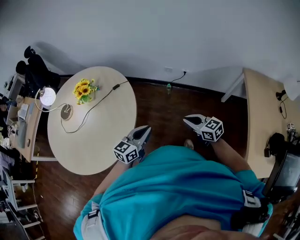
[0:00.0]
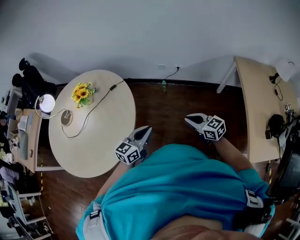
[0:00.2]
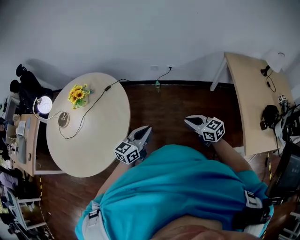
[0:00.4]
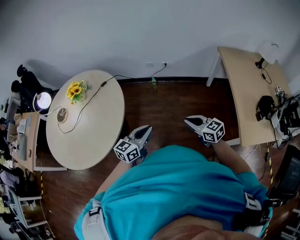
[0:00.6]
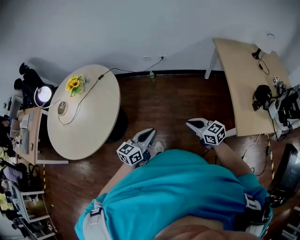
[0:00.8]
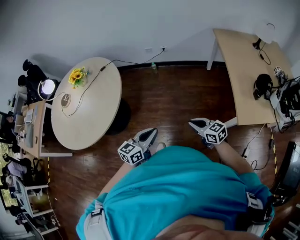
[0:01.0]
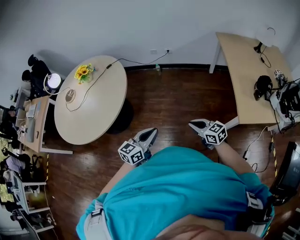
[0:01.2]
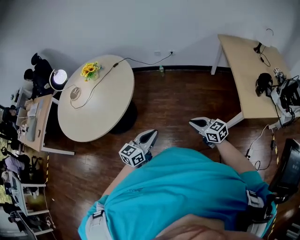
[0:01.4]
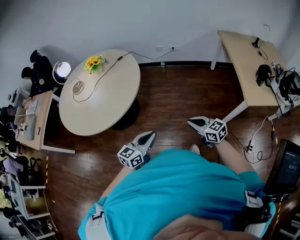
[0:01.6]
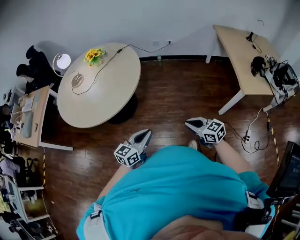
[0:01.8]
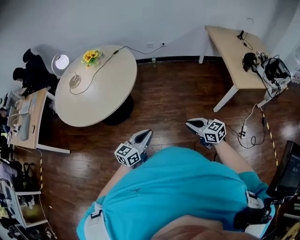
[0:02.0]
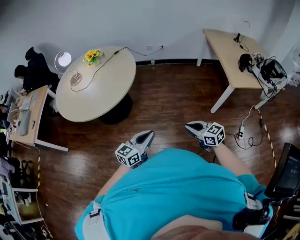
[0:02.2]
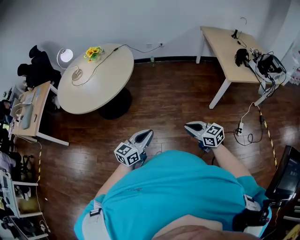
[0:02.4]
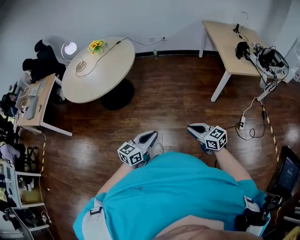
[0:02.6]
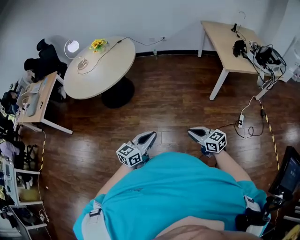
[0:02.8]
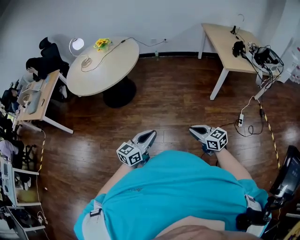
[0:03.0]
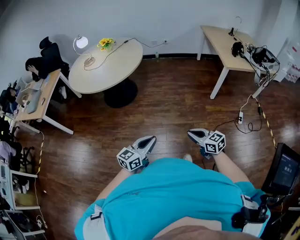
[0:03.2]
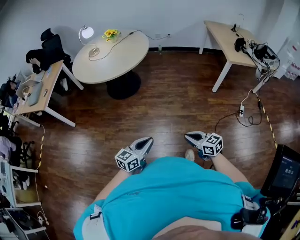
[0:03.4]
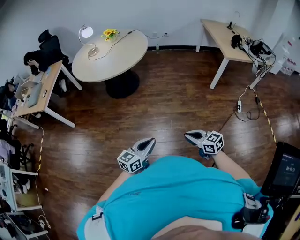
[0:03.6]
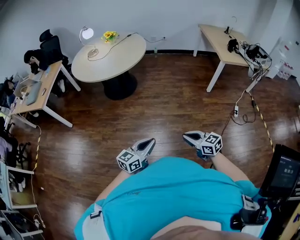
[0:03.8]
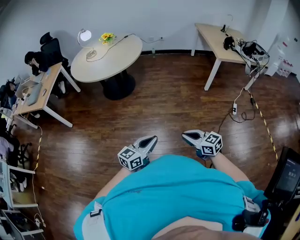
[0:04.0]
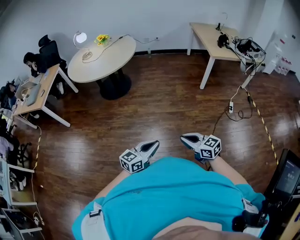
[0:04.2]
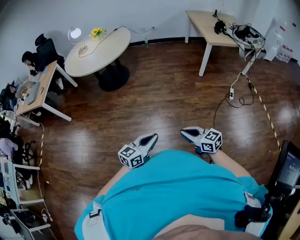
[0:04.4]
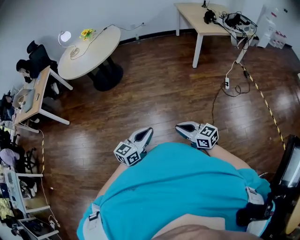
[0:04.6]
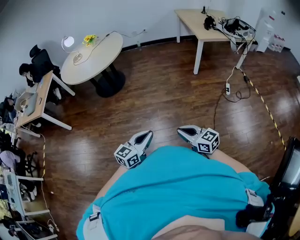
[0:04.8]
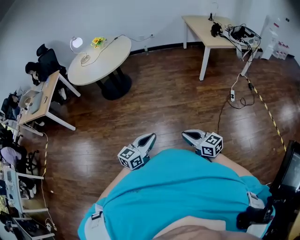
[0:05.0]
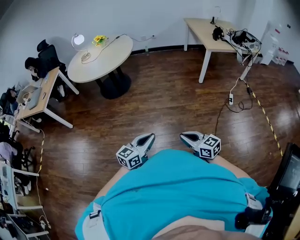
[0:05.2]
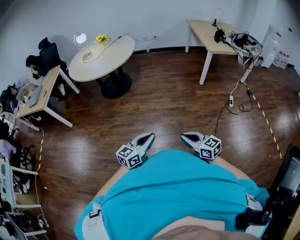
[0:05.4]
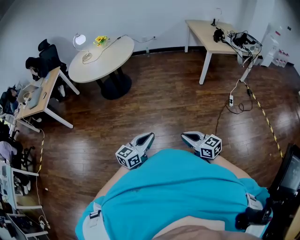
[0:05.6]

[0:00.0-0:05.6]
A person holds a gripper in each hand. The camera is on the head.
0:00.0 to 0:01.4: Both grippers are carried backward, about 40 cm.
0:01.4 to 0:02.8: The two grippers travel together, backward, some 50 cm.
0:02.8 to 0:04.2: The grippers both shift backward and to the left by about 40 cm.
0:04.2 to 0:05.6: The grippers stay close to where they were, moving slightly.

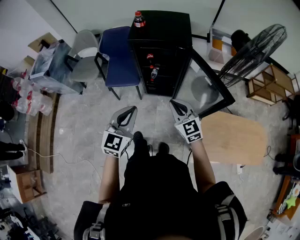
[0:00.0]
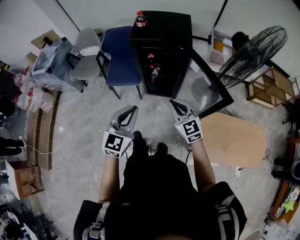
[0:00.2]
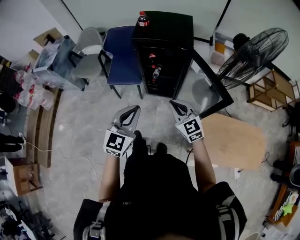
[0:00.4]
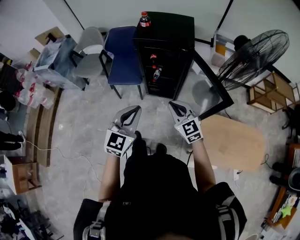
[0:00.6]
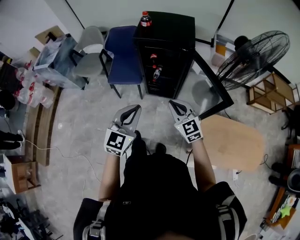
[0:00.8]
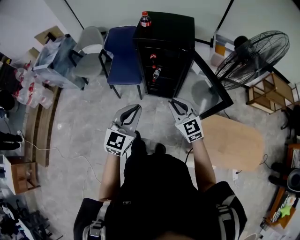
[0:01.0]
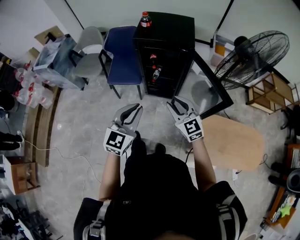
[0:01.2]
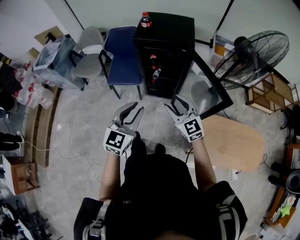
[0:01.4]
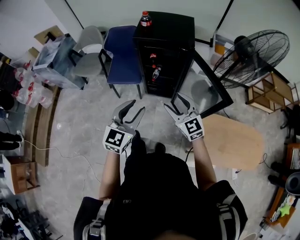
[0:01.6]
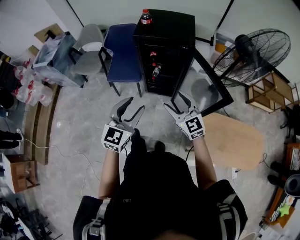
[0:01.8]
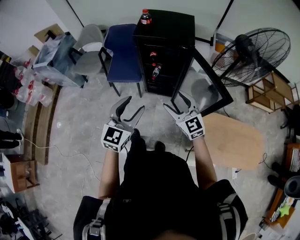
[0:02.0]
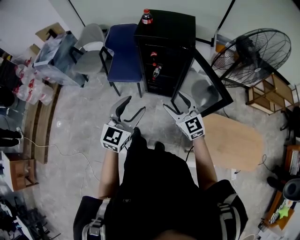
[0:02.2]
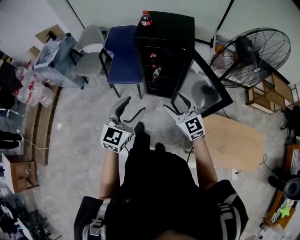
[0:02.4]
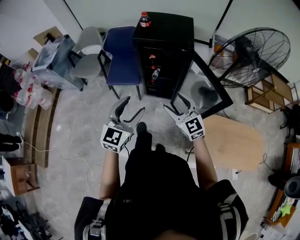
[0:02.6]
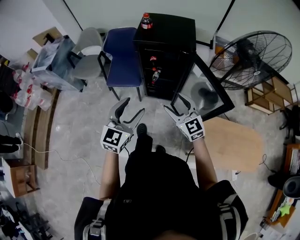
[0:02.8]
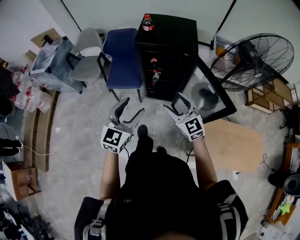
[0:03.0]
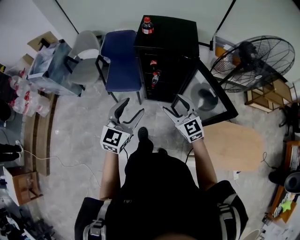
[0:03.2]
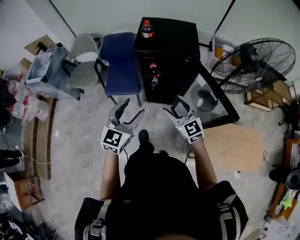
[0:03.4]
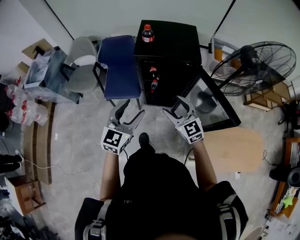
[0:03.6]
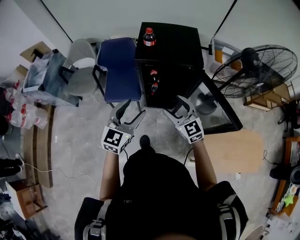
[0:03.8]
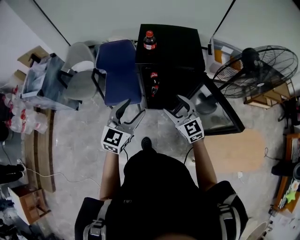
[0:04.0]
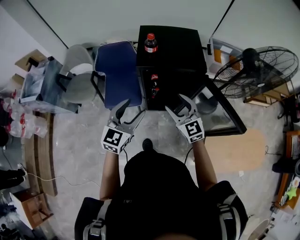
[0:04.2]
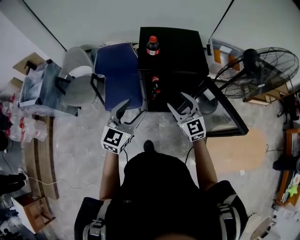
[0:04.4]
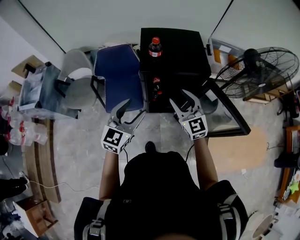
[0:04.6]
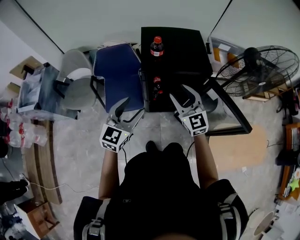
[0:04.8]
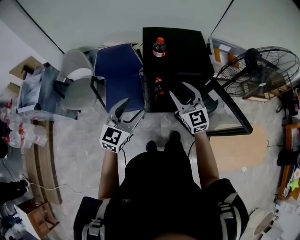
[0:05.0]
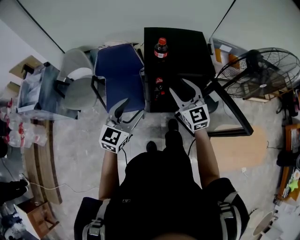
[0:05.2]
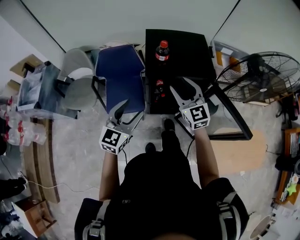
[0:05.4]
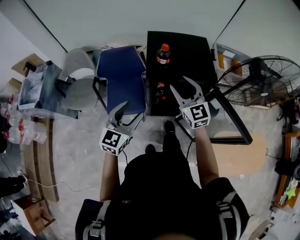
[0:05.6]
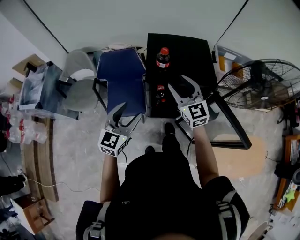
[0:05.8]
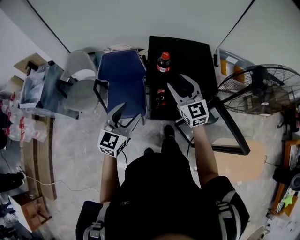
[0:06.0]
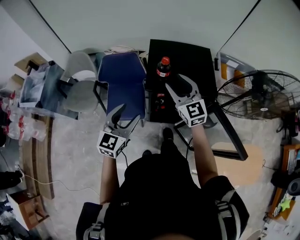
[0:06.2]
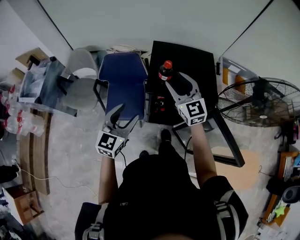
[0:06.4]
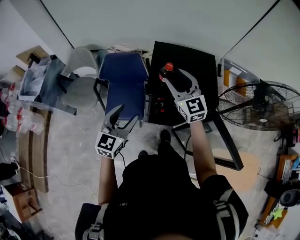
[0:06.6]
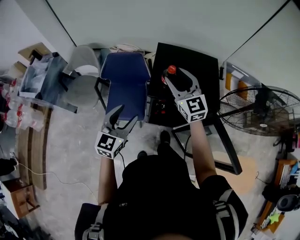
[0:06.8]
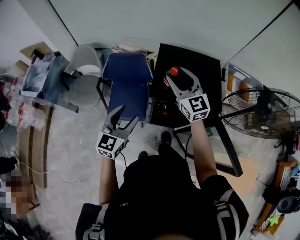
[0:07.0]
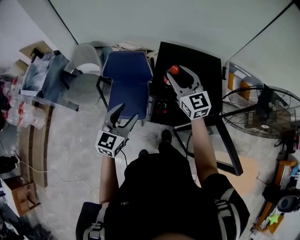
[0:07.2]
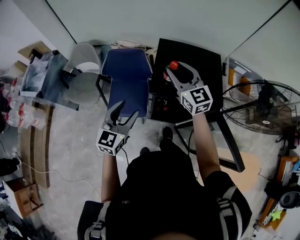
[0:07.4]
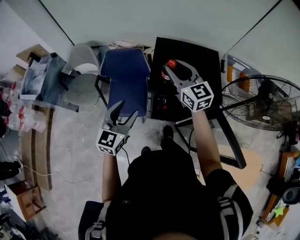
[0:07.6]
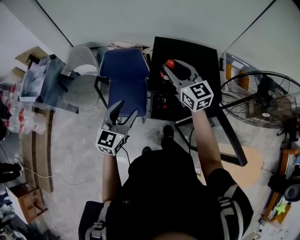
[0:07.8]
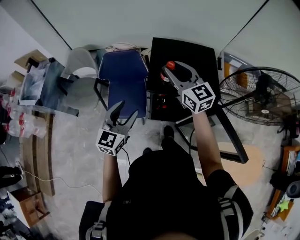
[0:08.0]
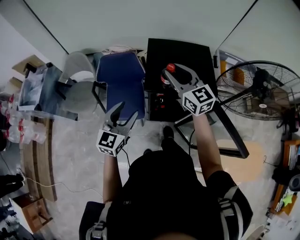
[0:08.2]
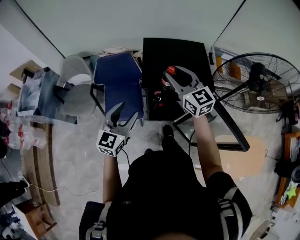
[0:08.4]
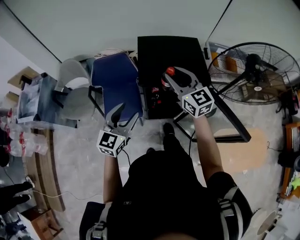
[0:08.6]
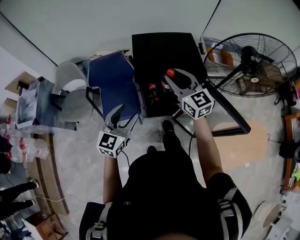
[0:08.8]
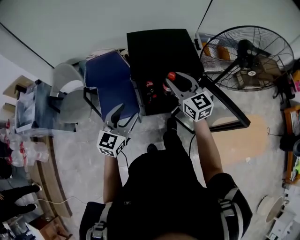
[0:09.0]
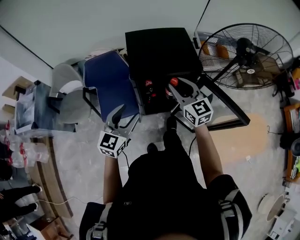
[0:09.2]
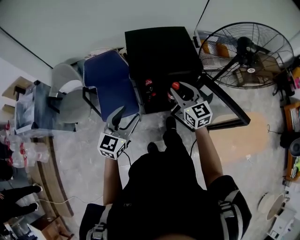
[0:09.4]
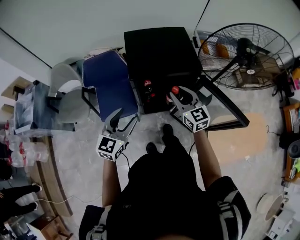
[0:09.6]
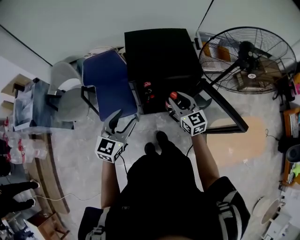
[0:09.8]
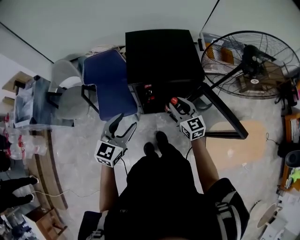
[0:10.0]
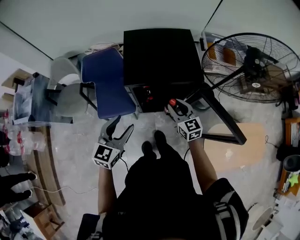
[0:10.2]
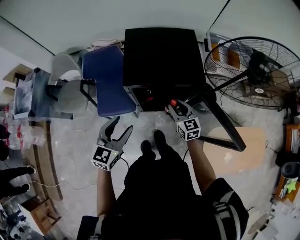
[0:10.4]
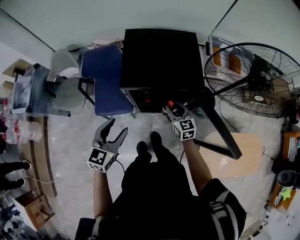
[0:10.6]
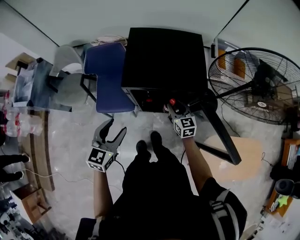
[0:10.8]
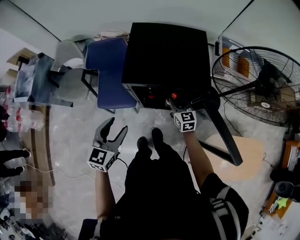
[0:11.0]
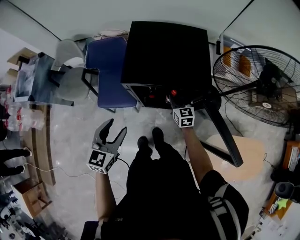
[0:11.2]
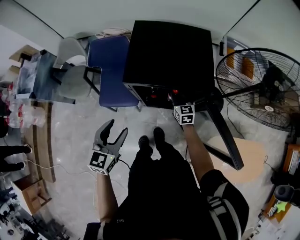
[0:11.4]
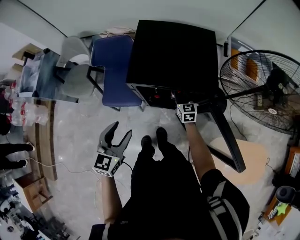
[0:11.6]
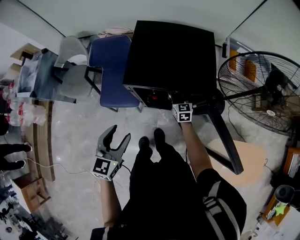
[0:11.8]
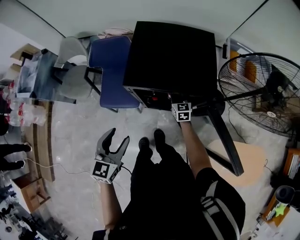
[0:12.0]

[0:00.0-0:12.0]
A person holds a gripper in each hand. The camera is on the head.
0:00.0 to 0:01.6: The left gripper opens; the right gripper opens up.
0:01.6 to 0:03.0: The left gripper travels forward by approximately 5 cm, and opens up, while the right gripper moves some 5 cm.
0:03.0 to 0:04.4: Both grippers move forward, approximately 20 cm.
0:04.4 to 0:06.0: The right gripper goes approximately 15 cm forward and upward. Meanwhile the left gripper moves forward and to the left, approximately 10 cm.
0:06.0 to 0:07.6: The right gripper goes approximately 10 cm forward.
0:07.6 to 0:09.0: The right gripper travels backward and to the right by roughly 15 cm, while the left gripper moves backward, some 5 cm.
0:09.0 to 0:10.4: The right gripper is displaced downward by about 20 cm.
0:10.4 to 0:12.0: The right gripper travels downward and forward by about 20 cm.

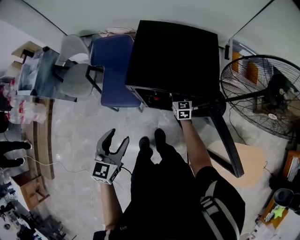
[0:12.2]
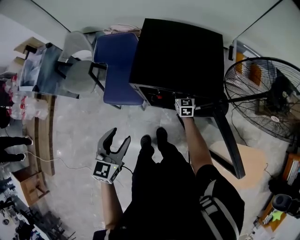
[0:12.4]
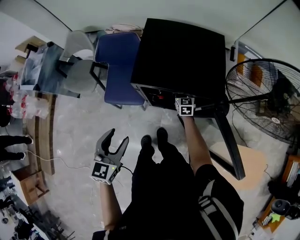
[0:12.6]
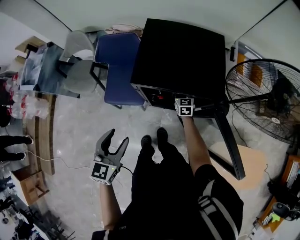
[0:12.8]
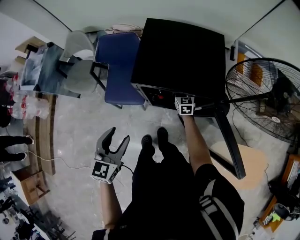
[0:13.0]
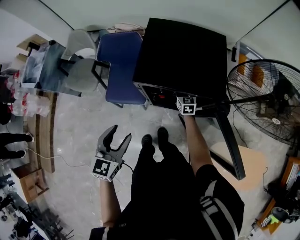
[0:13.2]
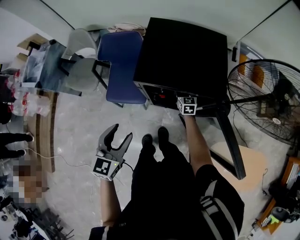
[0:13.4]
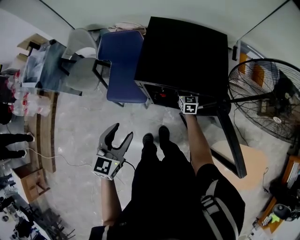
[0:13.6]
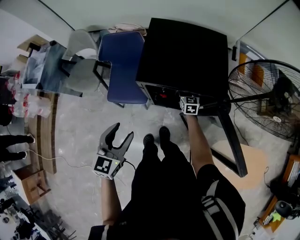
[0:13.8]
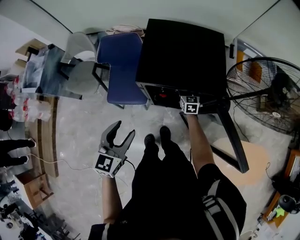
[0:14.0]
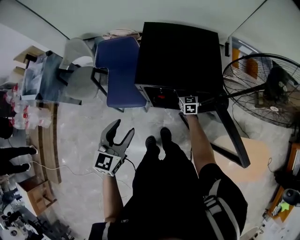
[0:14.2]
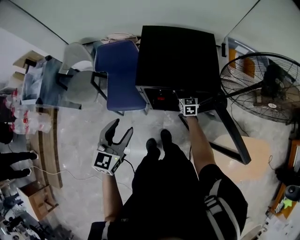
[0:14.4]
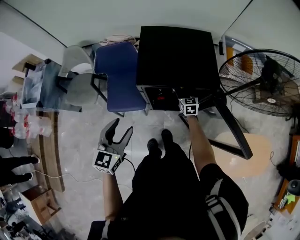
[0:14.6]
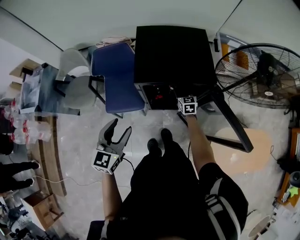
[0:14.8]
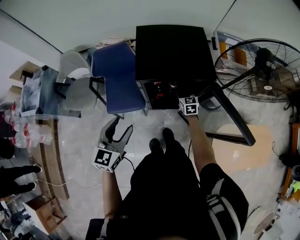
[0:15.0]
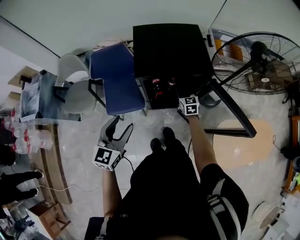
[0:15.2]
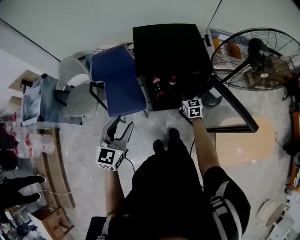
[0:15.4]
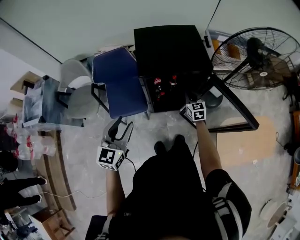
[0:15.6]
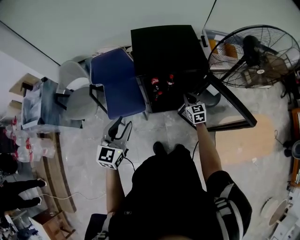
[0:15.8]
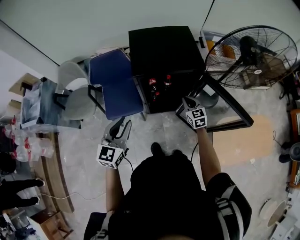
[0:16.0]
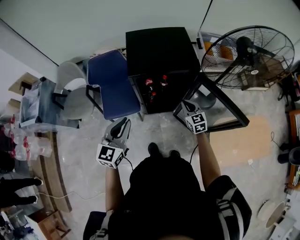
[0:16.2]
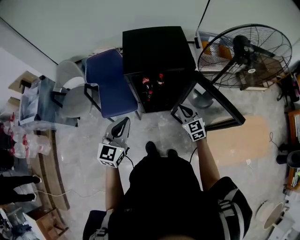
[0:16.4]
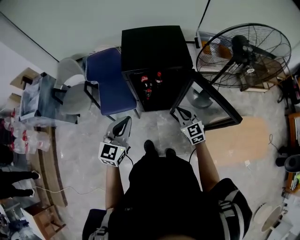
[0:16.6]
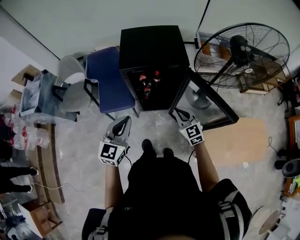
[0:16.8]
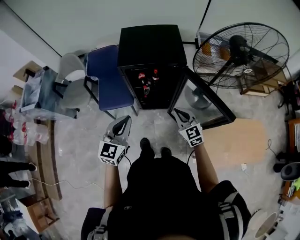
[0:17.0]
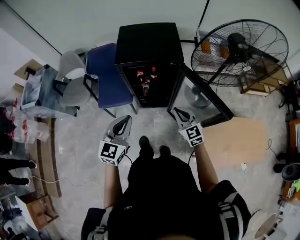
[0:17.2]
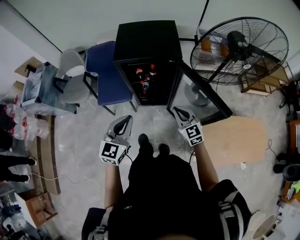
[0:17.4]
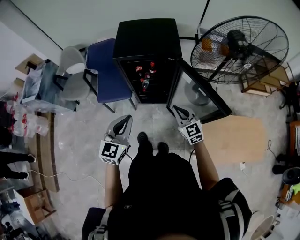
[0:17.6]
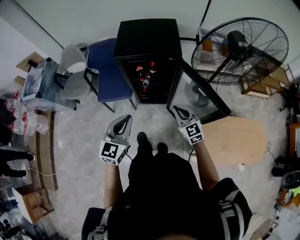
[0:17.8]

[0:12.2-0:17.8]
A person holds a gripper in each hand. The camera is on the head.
0:12.2 to 0:13.6: The right gripper opens up.
0:13.6 to 0:15.0: The left gripper ends up approximately 5 cm from where it was; the right gripper is displaced backward and upward by roughly 10 cm.
0:15.0 to 0:16.4: The right gripper heads backward and upward, covering some 20 cm, and closes its fingers, while the left gripper travels to the right by about 5 cm, and closes up.
0:16.4 to 0:17.8: The right gripper goes some 10 cm backward and to the right; the left gripper moves to the right and backward, some 15 cm.
